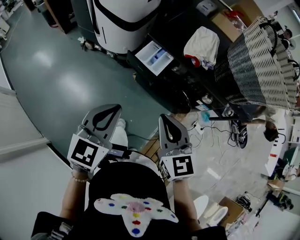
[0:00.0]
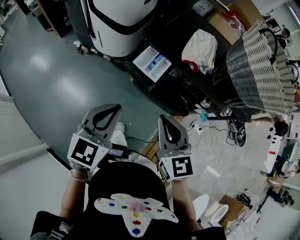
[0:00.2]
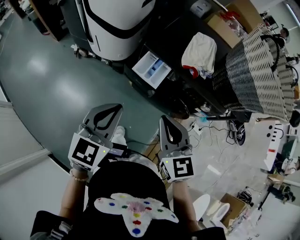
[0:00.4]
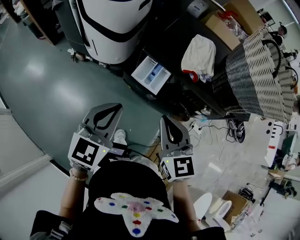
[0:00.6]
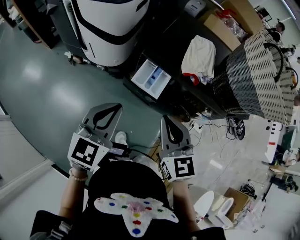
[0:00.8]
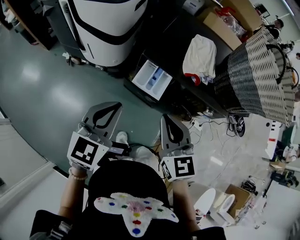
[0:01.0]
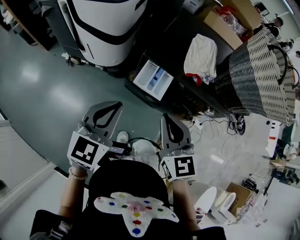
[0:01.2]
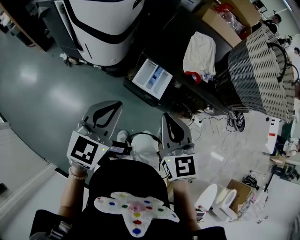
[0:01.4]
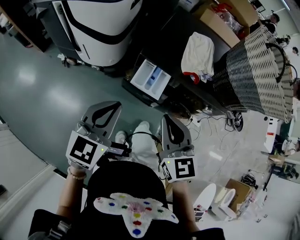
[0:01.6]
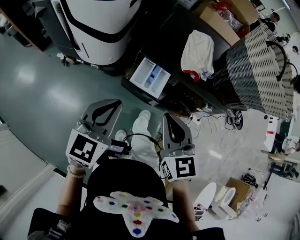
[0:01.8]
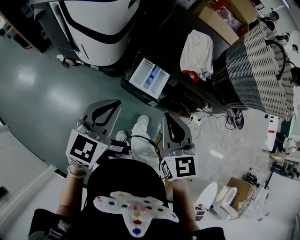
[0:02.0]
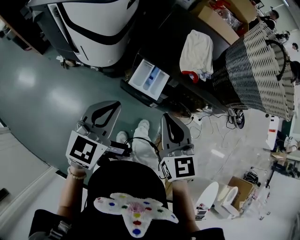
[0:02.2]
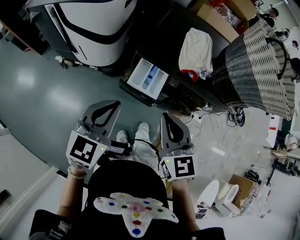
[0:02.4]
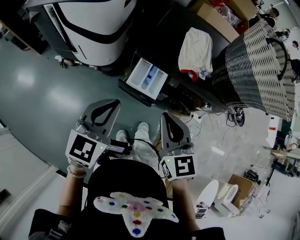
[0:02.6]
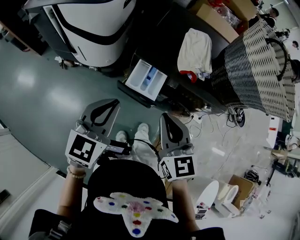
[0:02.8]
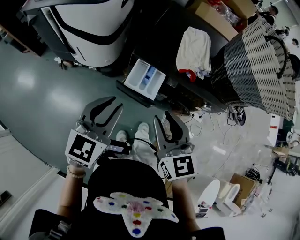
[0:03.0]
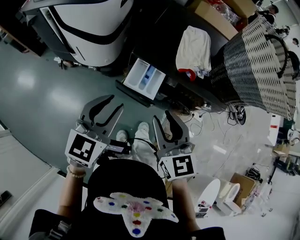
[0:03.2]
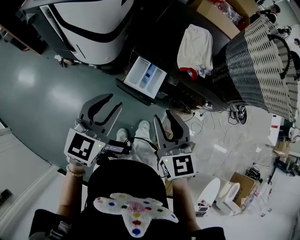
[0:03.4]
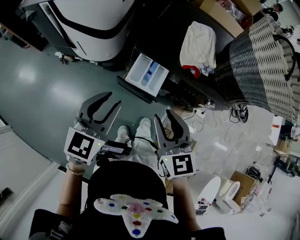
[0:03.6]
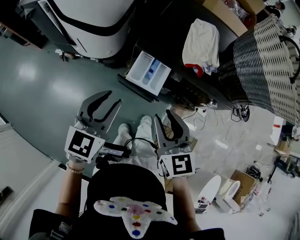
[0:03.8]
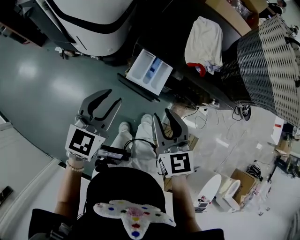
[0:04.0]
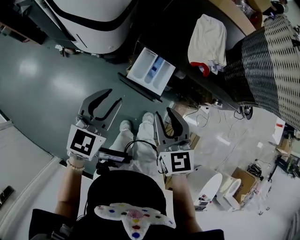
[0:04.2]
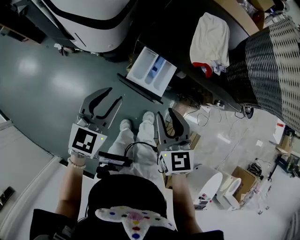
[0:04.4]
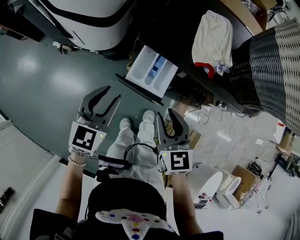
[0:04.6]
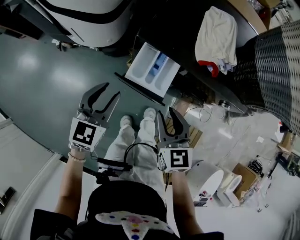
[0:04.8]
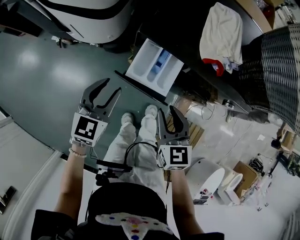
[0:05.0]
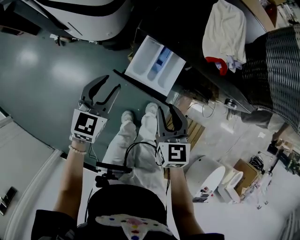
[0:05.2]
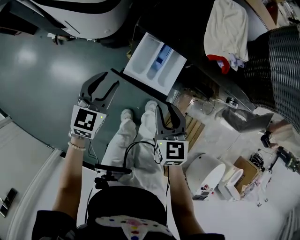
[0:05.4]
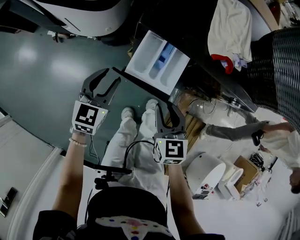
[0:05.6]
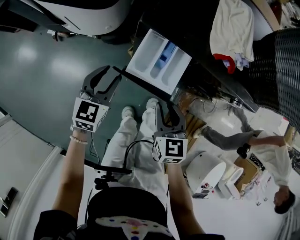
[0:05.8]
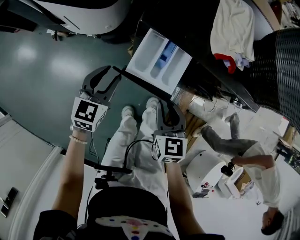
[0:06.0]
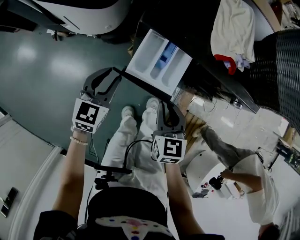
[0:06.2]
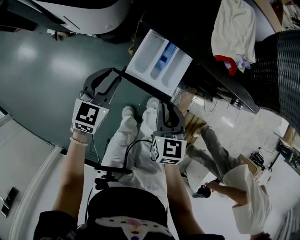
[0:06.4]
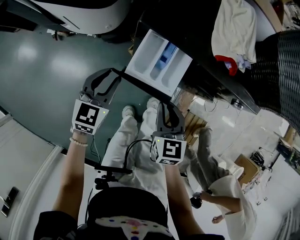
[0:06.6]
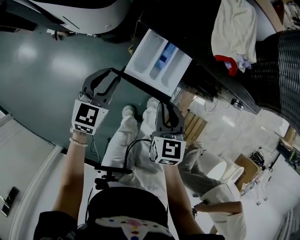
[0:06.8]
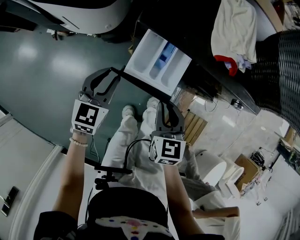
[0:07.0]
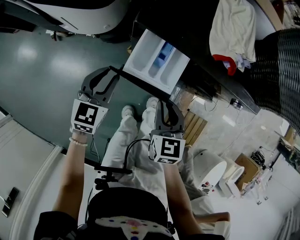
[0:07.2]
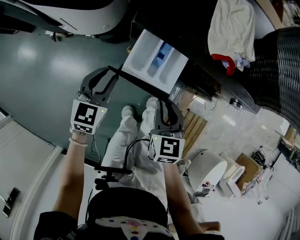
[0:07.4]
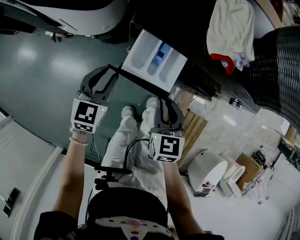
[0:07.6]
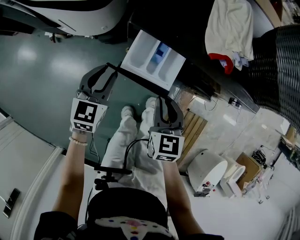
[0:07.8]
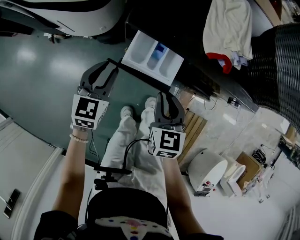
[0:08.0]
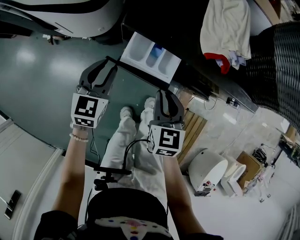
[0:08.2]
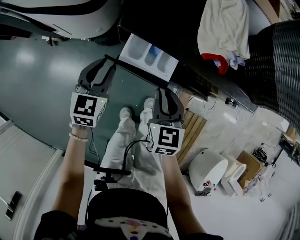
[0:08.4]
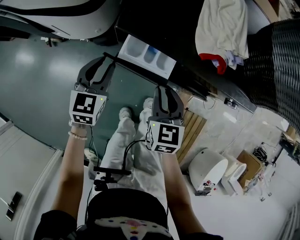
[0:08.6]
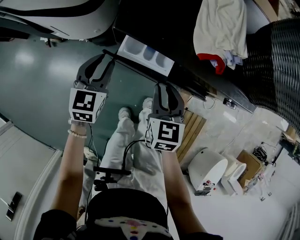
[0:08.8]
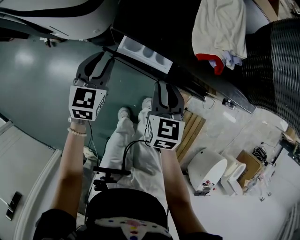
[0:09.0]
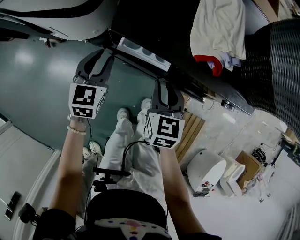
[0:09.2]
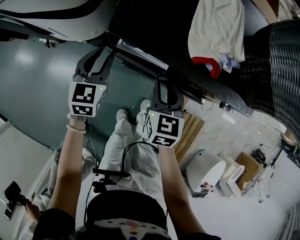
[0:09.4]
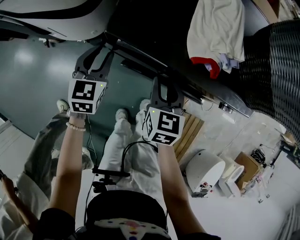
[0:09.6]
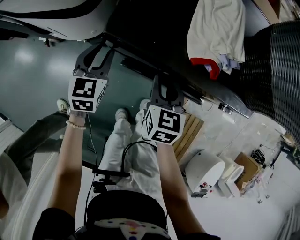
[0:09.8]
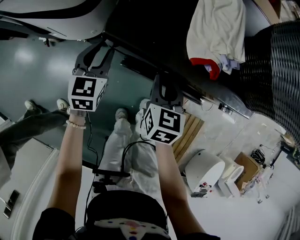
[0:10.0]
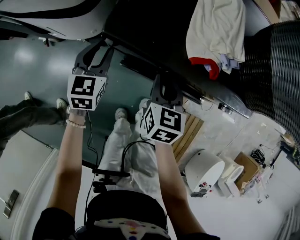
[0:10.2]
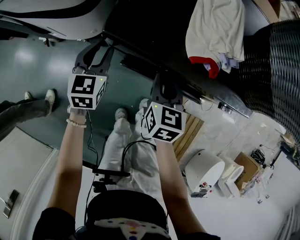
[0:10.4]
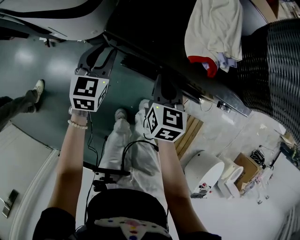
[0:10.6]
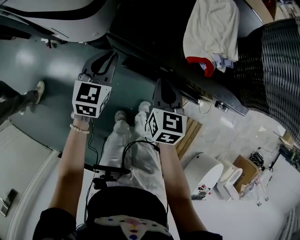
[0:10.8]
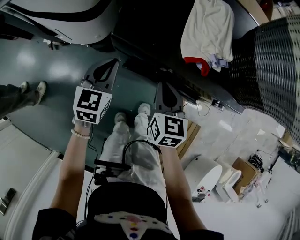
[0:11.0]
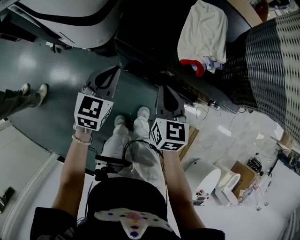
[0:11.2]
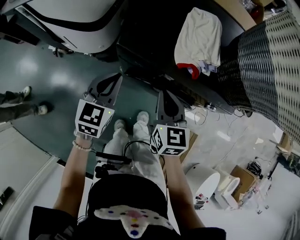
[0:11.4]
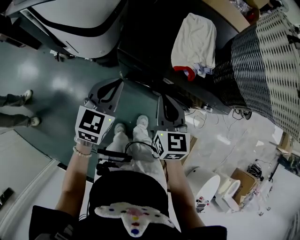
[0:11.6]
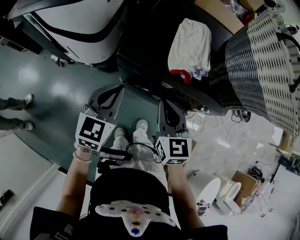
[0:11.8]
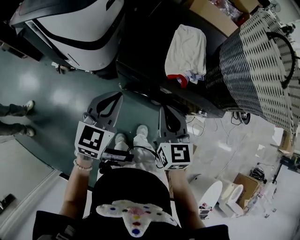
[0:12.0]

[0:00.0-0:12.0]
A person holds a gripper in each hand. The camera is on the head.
0:00.0 to 0:01.6: Both grippers move forward and to the left, approximately 15 cm.
0:01.6 to 0:03.0: The right gripper opens its fingers.
0:03.0 to 0:04.4: The grippers both shift downward by about 10 cm.
0:04.4 to 0:06.0: The grippers both shift downward by approximately 15 cm.
0:06.0 to 0:07.6: The grippers stay close to where they were, moving slightly.
0:07.6 to 0:09.0: Both grippers move forward, some 5 cm.
0:09.0 to 0:10.4: The grippers make only small movements.
0:10.4 to 0:12.0: The two grippers go roughly 20 cm upward and backward. The right gripper rotates approximately 20 degrees. Meanwhile the left gripper closes.

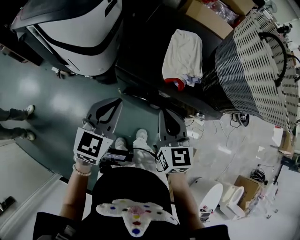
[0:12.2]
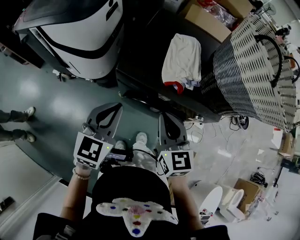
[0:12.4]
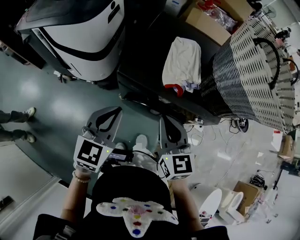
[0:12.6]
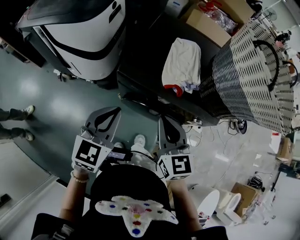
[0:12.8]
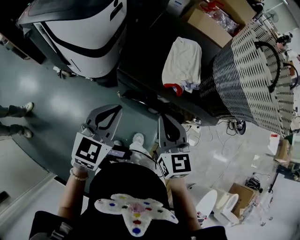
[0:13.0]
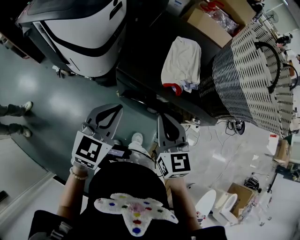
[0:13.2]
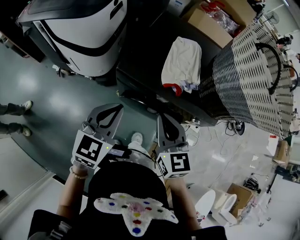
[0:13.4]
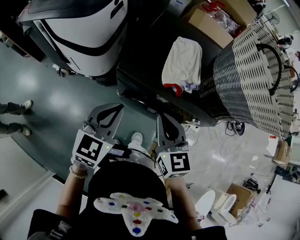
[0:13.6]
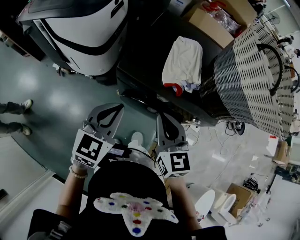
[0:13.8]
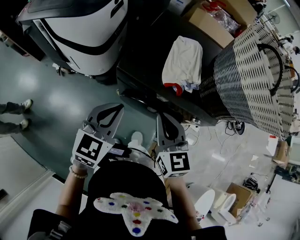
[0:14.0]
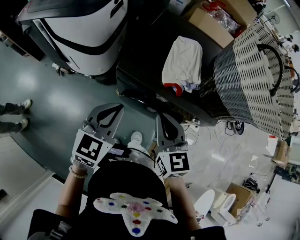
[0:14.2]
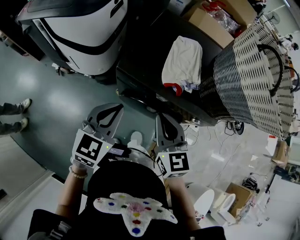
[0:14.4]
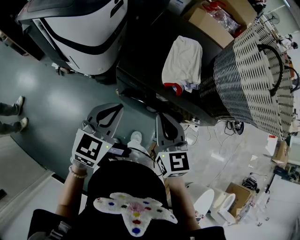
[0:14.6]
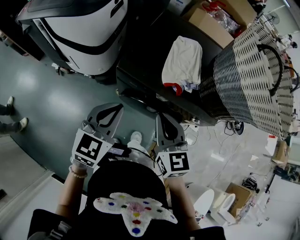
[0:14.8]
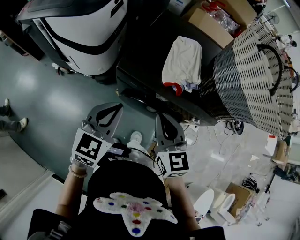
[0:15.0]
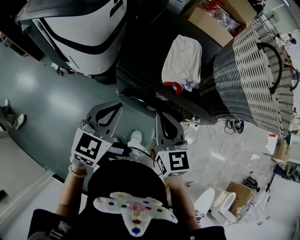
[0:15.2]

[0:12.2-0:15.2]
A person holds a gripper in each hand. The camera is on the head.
0:12.2 to 0:13.8: The grippers stay close to where they were, moving slightly.
0:13.8 to 0:15.2: Both grippers stay about where they are.

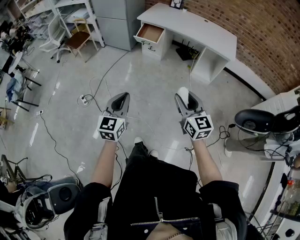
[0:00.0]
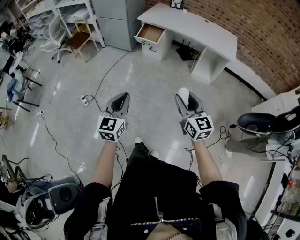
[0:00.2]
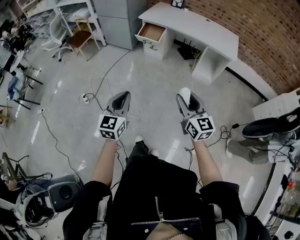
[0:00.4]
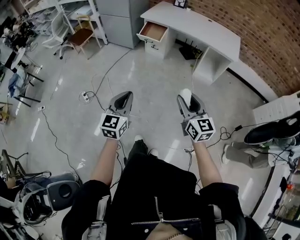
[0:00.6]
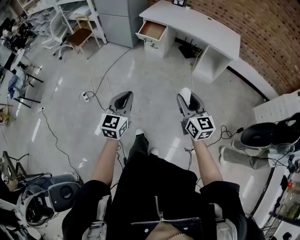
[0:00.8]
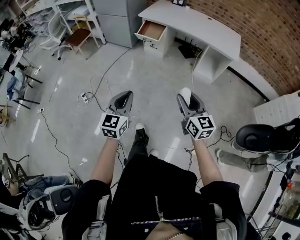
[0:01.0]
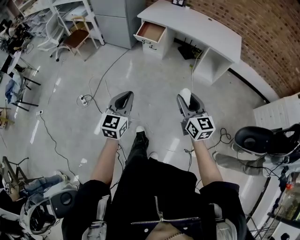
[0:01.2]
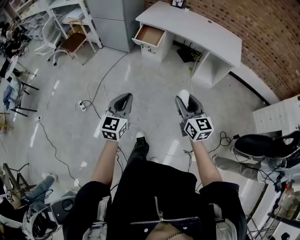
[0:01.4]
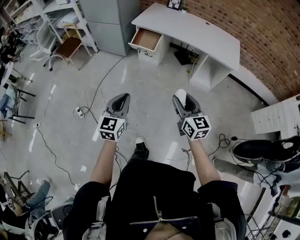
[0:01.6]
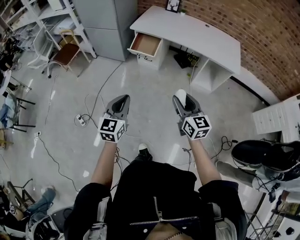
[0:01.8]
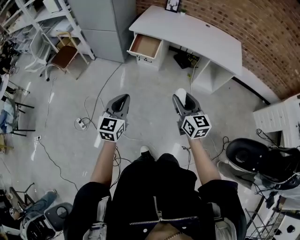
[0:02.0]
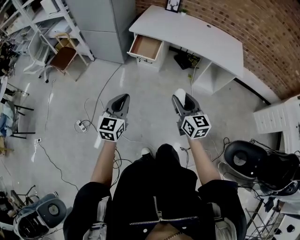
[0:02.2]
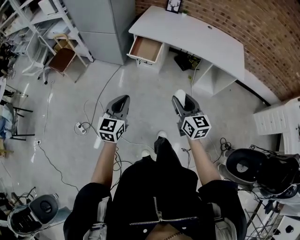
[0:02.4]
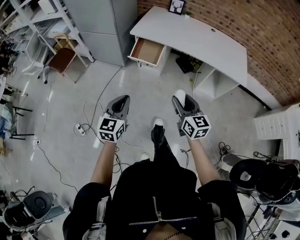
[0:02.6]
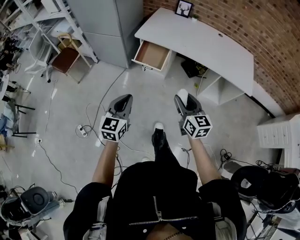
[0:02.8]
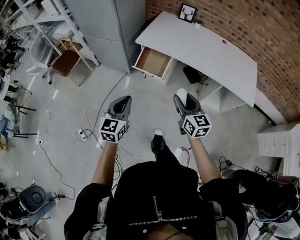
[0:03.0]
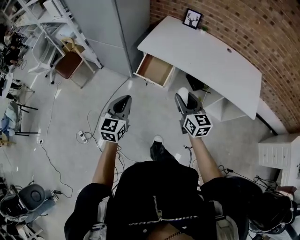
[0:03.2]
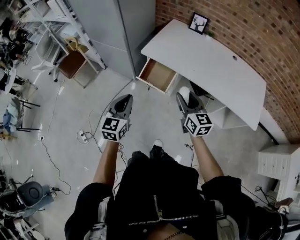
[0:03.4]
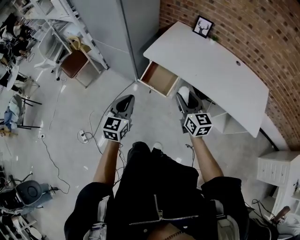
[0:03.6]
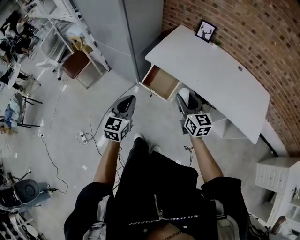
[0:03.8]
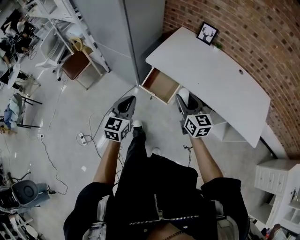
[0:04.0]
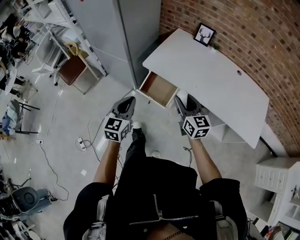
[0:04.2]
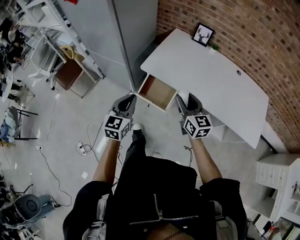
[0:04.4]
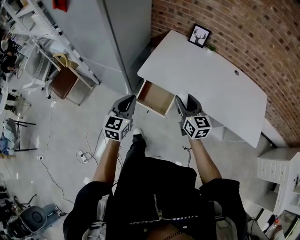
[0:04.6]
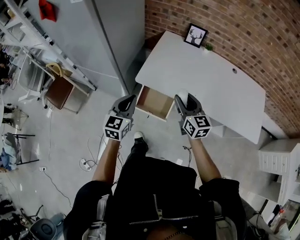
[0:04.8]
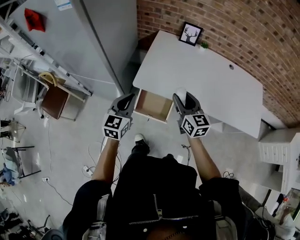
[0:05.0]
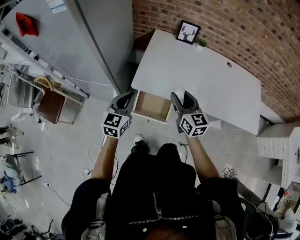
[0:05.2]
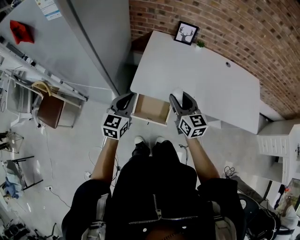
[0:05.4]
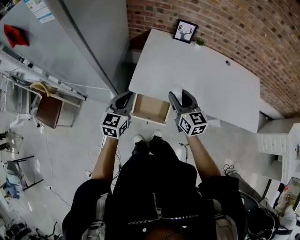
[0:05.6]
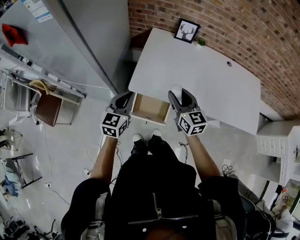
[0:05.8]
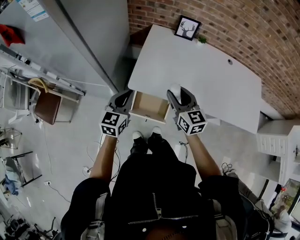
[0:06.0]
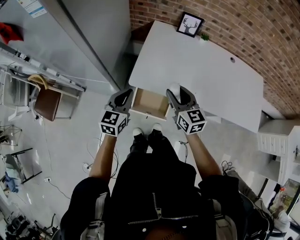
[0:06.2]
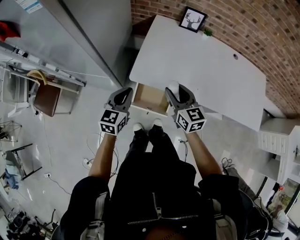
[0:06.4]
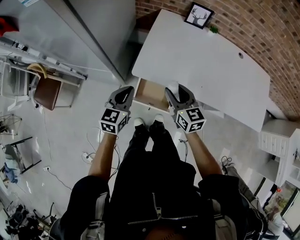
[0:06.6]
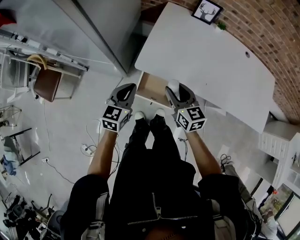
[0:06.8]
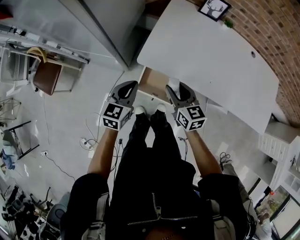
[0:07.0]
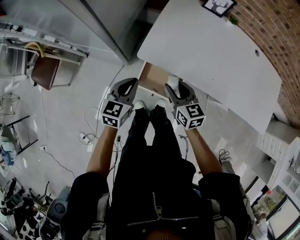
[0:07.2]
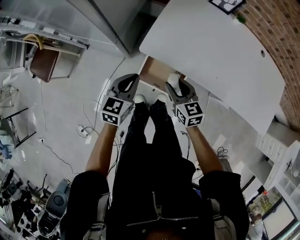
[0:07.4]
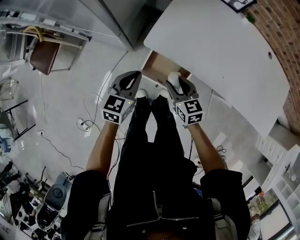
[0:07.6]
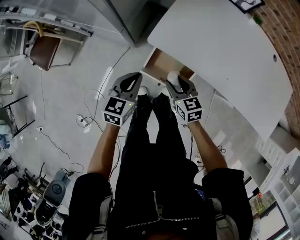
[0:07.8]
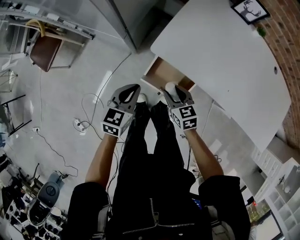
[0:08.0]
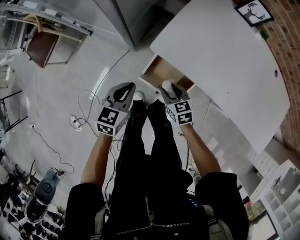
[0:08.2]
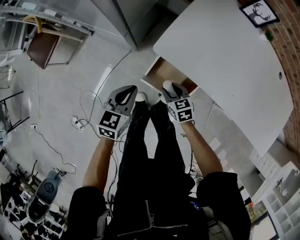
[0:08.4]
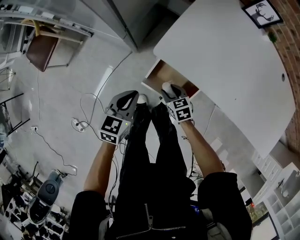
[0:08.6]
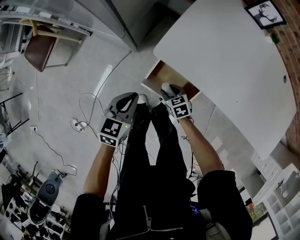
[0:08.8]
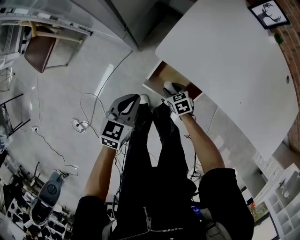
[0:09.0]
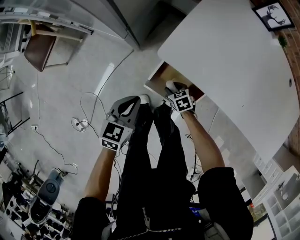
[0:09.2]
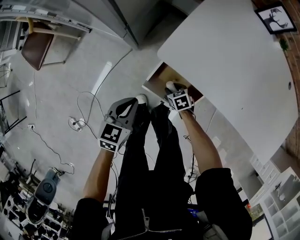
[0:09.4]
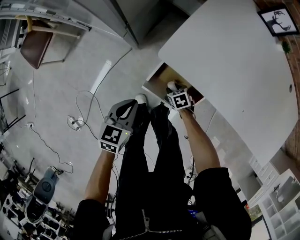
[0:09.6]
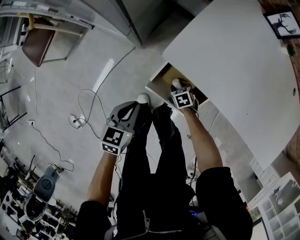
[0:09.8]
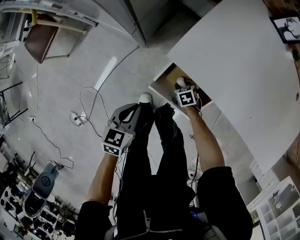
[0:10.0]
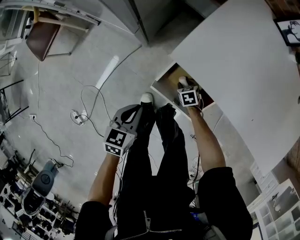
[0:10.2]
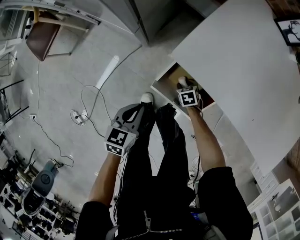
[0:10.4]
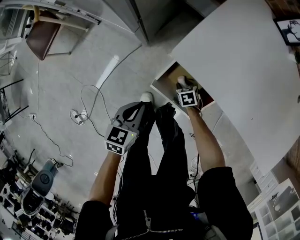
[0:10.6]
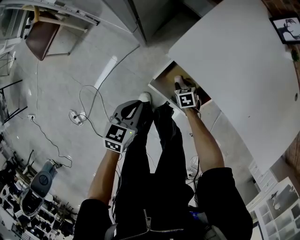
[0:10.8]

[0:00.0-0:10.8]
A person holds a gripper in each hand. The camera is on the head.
0:00.0 to 0:01.6: Both grippers travel together forward, about 20 cm.
0:01.6 to 0:03.0: The grippers both shift forward by about 35 cm.
0:03.0 to 0:04.6: Both grippers move forward, about 30 cm.
0:04.6 to 0:06.2: The left gripper moves forward, some 15 cm. The right gripper is displaced forward and to the left by approximately 15 cm.
0:06.2 to 0:07.8: The left gripper heads downward, covering about 15 cm; the right gripper goes roughly 20 cm downward, and swivels approximately 30 degrees.
0:07.8 to 0:09.2: The right gripper shifts roughly 25 cm downward, and swivels about 30 degrees, while the left gripper shifts roughly 10 cm downward.
0:09.2 to 0:10.8: The two grippers go roughly 5 cm downward.
